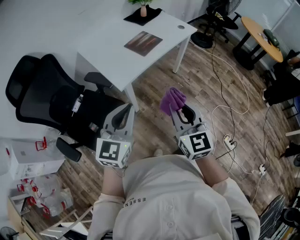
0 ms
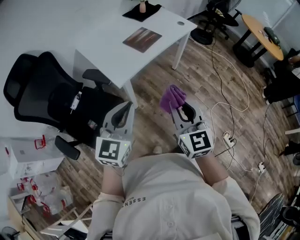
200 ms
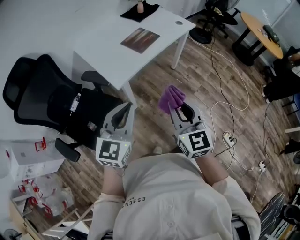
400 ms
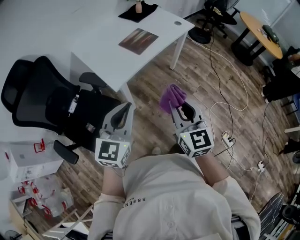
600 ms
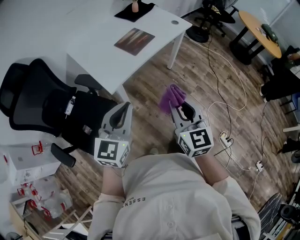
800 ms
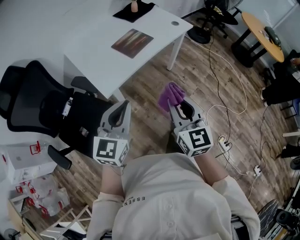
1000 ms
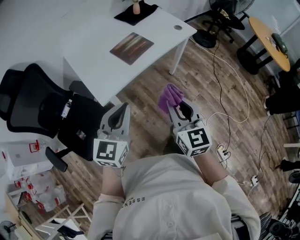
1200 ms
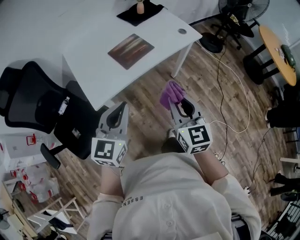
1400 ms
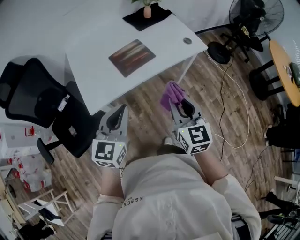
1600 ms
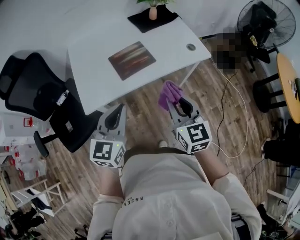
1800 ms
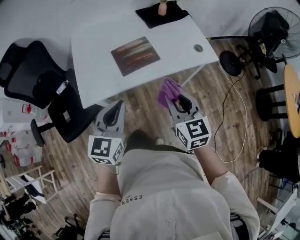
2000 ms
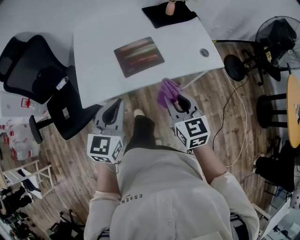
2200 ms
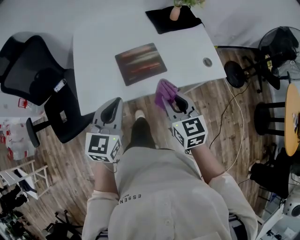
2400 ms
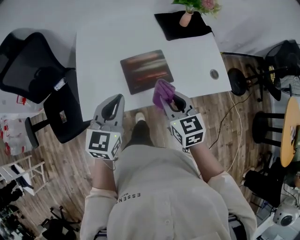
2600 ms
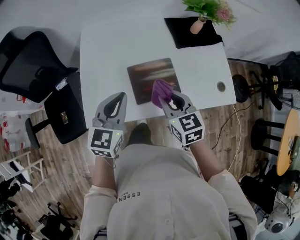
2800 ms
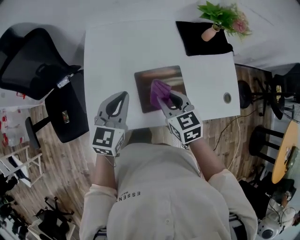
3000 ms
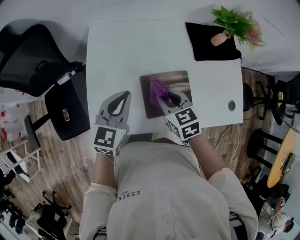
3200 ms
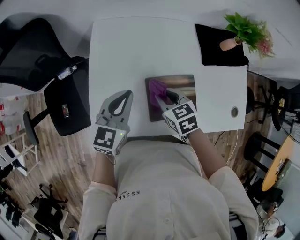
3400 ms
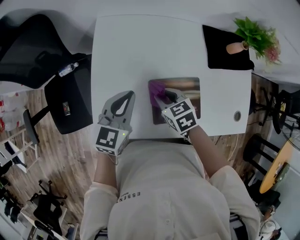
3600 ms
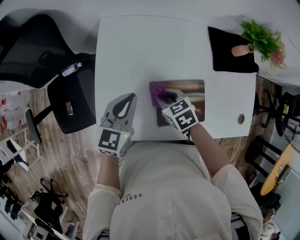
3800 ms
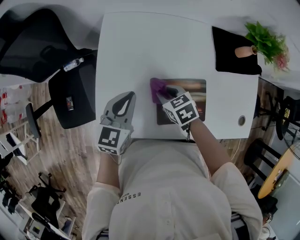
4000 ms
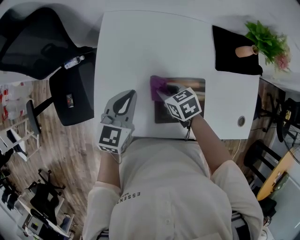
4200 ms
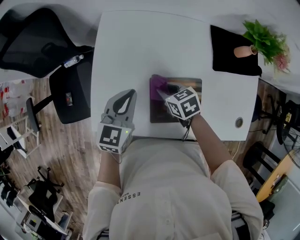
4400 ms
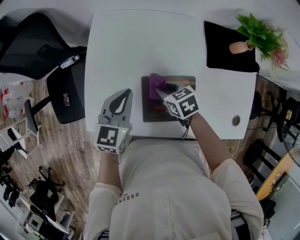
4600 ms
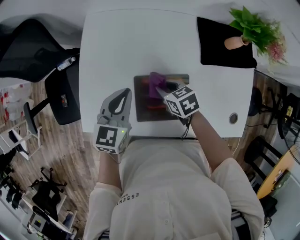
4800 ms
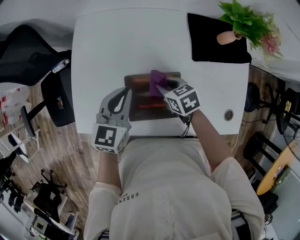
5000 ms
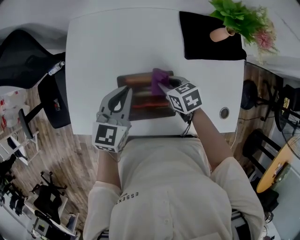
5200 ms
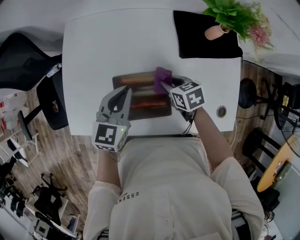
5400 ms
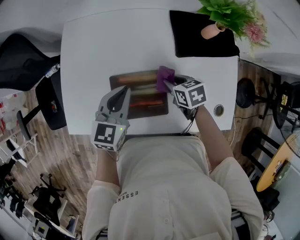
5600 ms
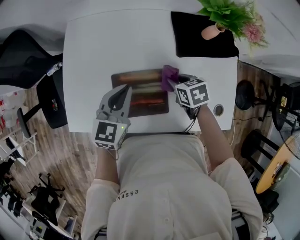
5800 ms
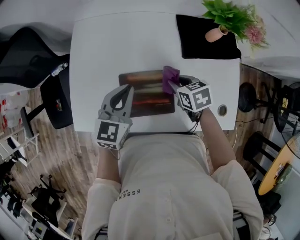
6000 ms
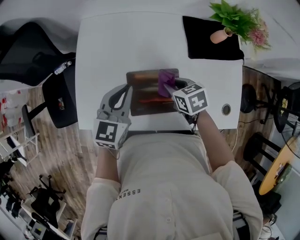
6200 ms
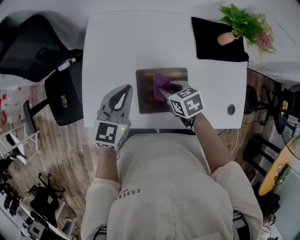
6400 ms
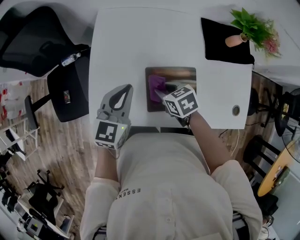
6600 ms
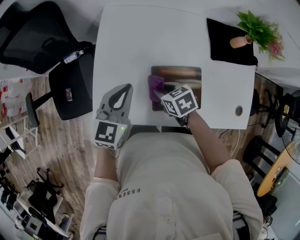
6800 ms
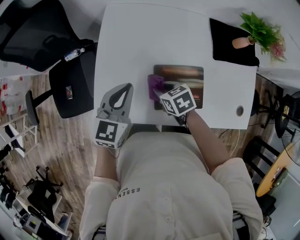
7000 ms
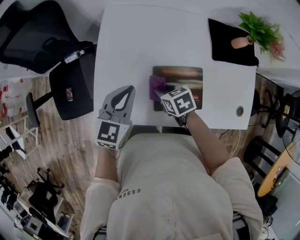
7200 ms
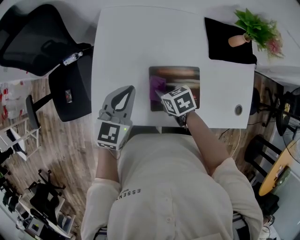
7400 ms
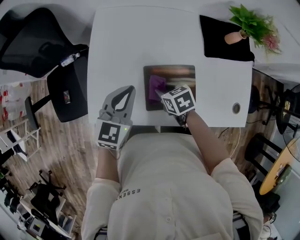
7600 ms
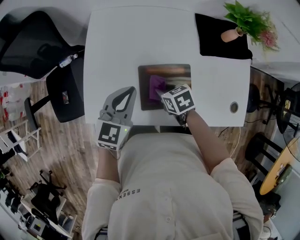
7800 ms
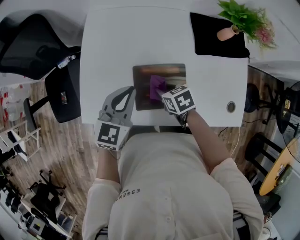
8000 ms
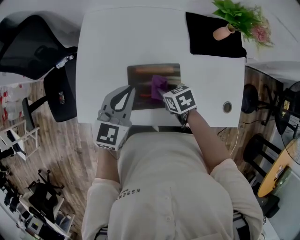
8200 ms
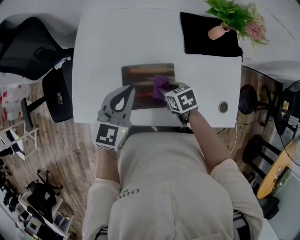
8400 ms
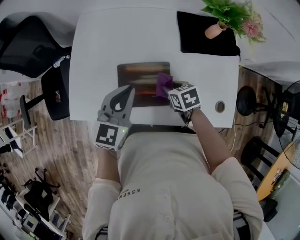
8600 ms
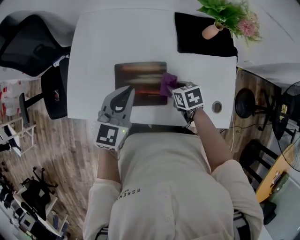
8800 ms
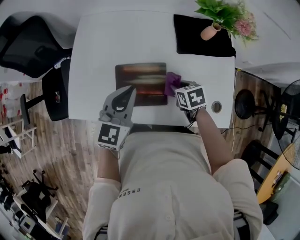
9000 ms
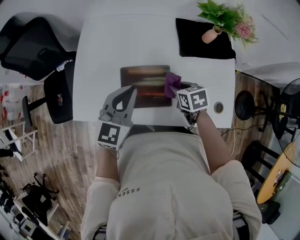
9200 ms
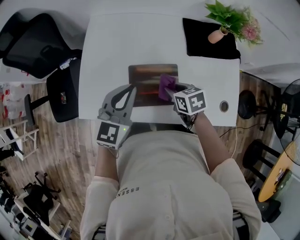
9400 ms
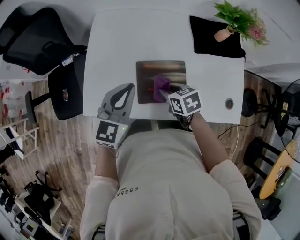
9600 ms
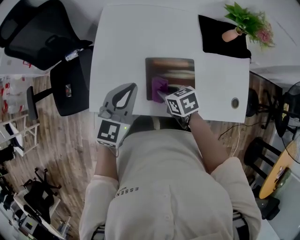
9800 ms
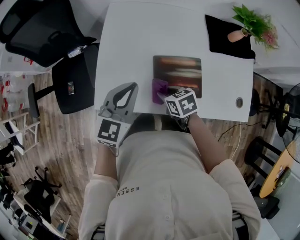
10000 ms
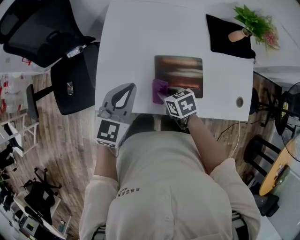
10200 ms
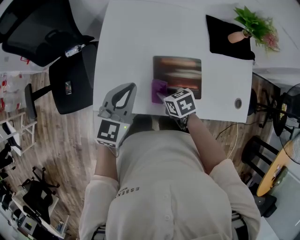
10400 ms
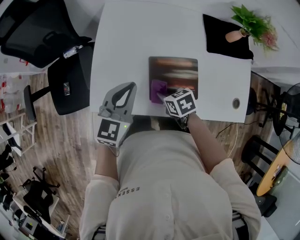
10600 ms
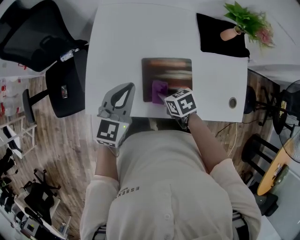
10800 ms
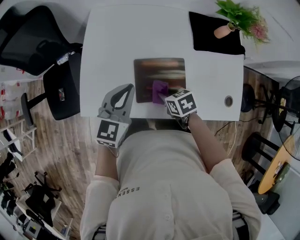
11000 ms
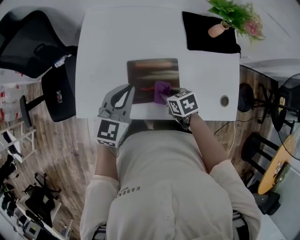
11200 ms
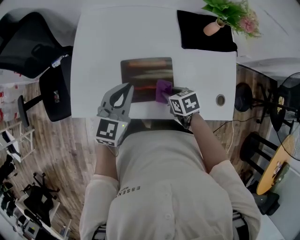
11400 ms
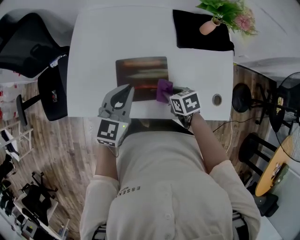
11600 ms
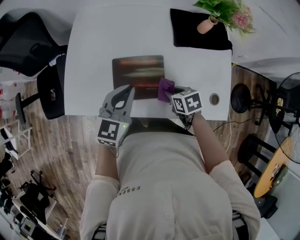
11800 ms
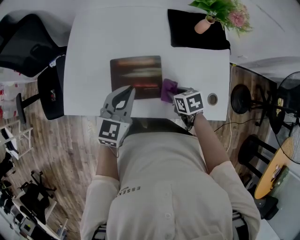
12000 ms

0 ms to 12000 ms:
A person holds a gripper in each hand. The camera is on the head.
0 ms to 1600 ms: The grippers both shift forward and to the right by roughly 35 cm.
1600 ms to 3000 ms: The right gripper shifts by some 40 cm, and swivels approximately 40 degrees. The left gripper moves some 30 cm, and turns by about 20 degrees.
3000 ms to 4400 ms: The right gripper moves downward and forward, approximately 15 cm, and changes its angle by some 30 degrees. The left gripper is displaced forward and downward by about 10 cm.
4400 ms to 6000 ms: Both grippers travel together to the right, approximately 15 cm.
6000 ms to 7600 ms: The left gripper travels to the left by some 10 cm. The right gripper shifts roughly 15 cm to the left.
7600 ms to 9000 ms: The right gripper moves to the right, about 20 cm. Meanwhile the left gripper heads to the right and backward, covering some 15 cm.
9000 ms to 10400 ms: Both grippers move to the left, roughly 20 cm.
10400 ms to 12000 ms: Both grippers move to the right, some 20 cm.

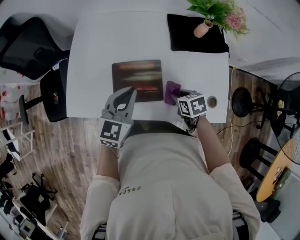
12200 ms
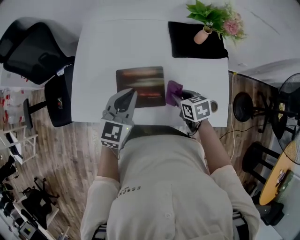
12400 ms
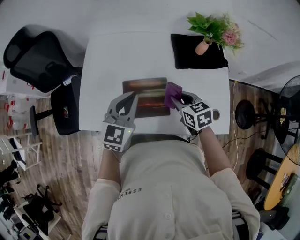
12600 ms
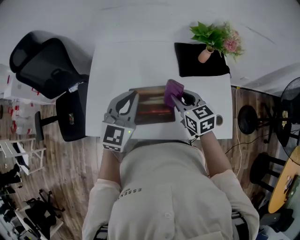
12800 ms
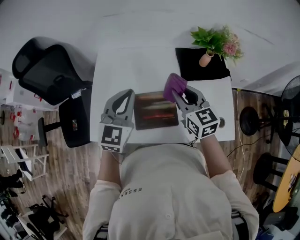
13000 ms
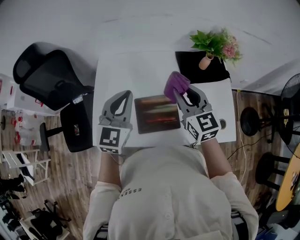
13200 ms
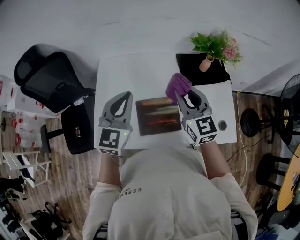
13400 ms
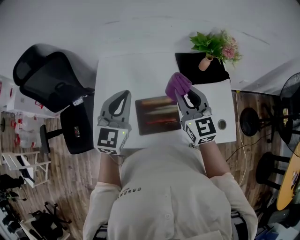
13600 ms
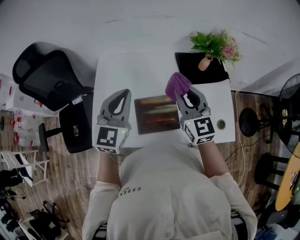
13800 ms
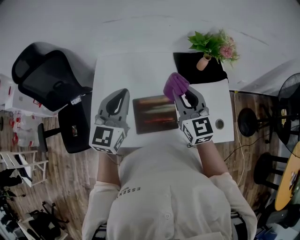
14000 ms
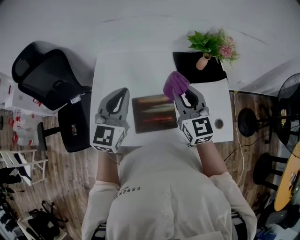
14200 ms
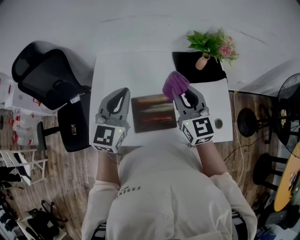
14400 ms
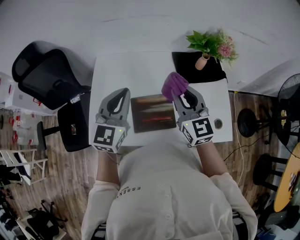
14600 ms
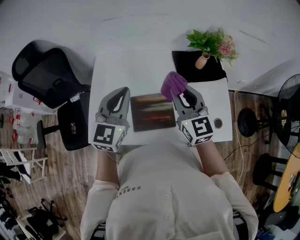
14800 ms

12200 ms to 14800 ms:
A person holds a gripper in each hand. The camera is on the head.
12200 ms to 13400 ms: The left gripper is displaced upward, to the left and forward by approximately 20 cm. The right gripper heads upward, covering roughly 30 cm, and tilts its fingers approximately 50 degrees upward.
13400 ms to 14800 ms: The grippers move only a little.

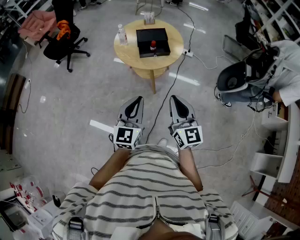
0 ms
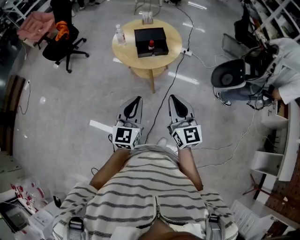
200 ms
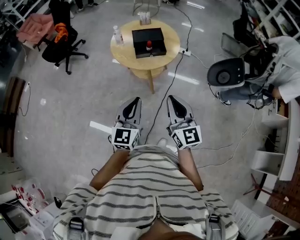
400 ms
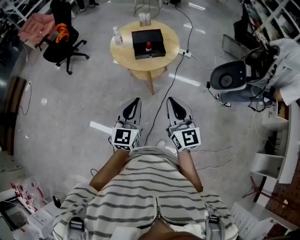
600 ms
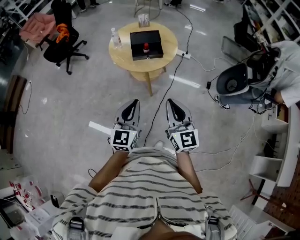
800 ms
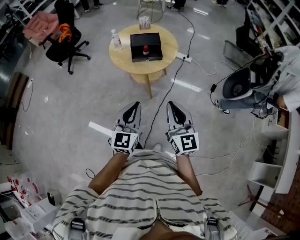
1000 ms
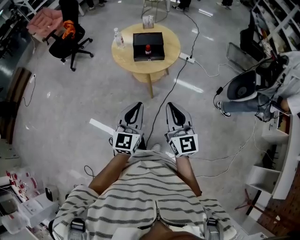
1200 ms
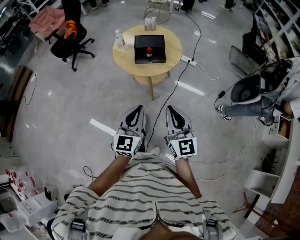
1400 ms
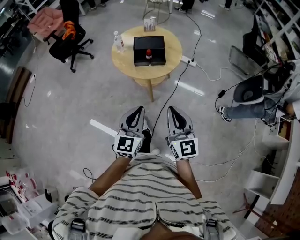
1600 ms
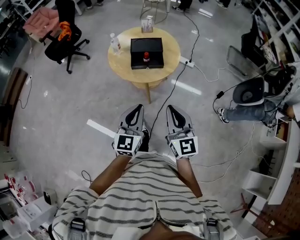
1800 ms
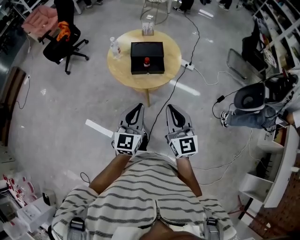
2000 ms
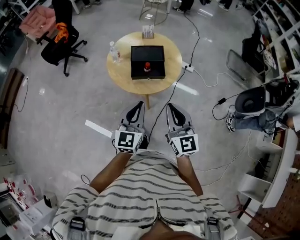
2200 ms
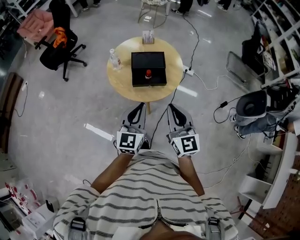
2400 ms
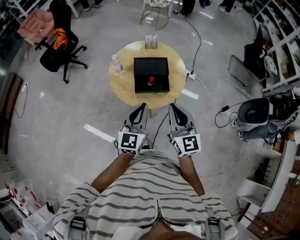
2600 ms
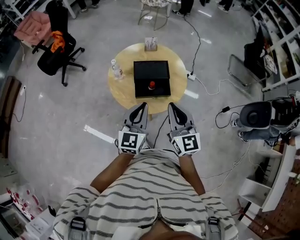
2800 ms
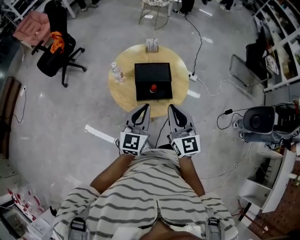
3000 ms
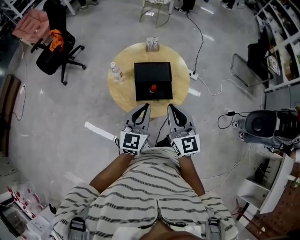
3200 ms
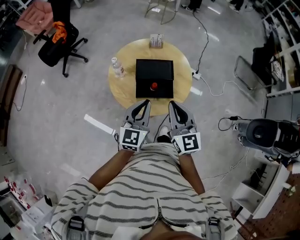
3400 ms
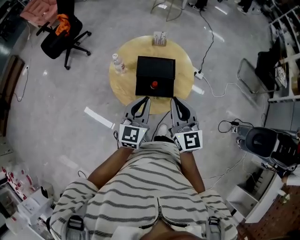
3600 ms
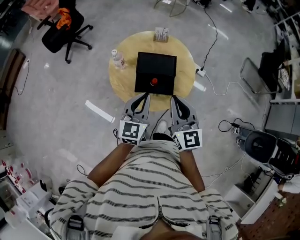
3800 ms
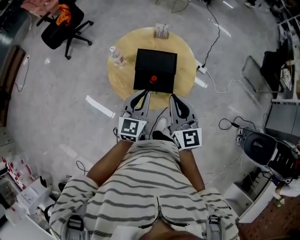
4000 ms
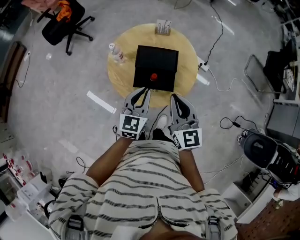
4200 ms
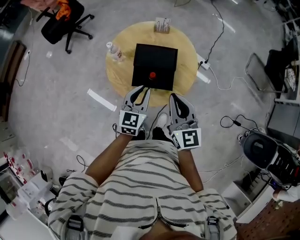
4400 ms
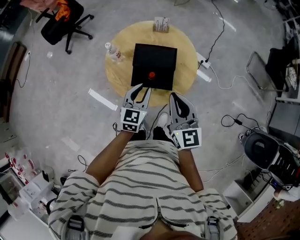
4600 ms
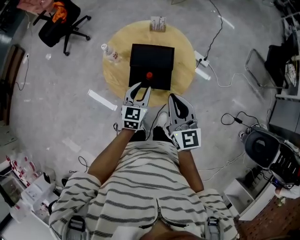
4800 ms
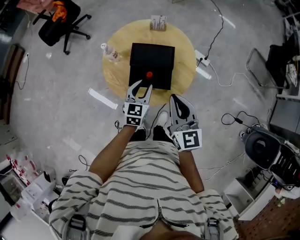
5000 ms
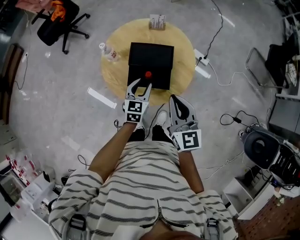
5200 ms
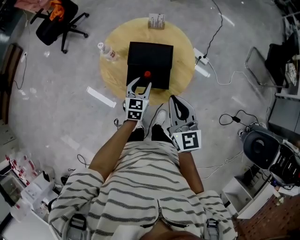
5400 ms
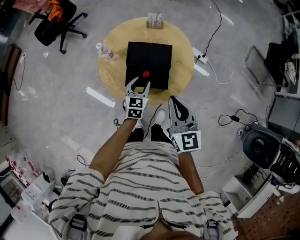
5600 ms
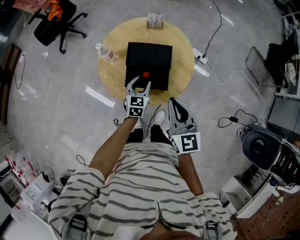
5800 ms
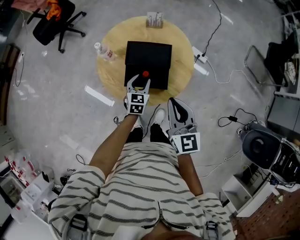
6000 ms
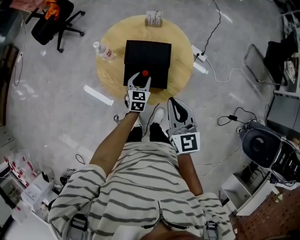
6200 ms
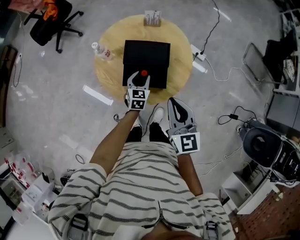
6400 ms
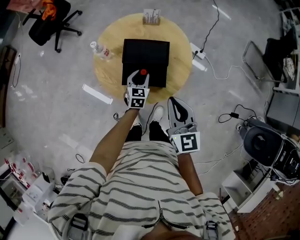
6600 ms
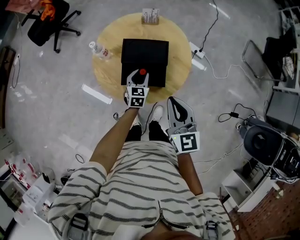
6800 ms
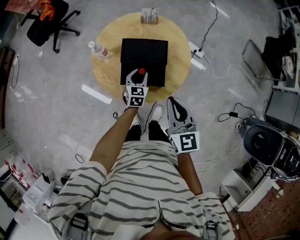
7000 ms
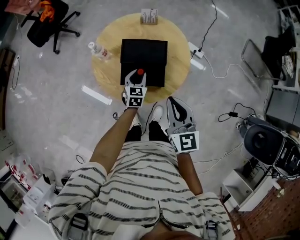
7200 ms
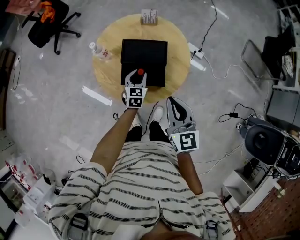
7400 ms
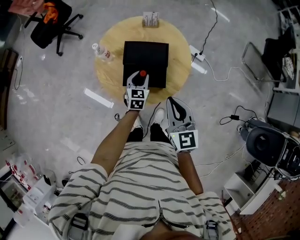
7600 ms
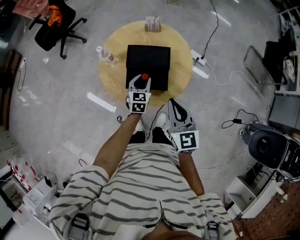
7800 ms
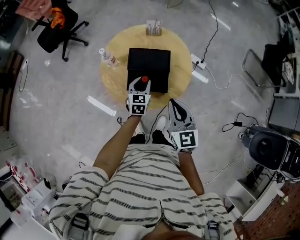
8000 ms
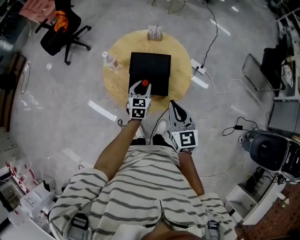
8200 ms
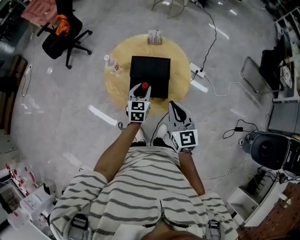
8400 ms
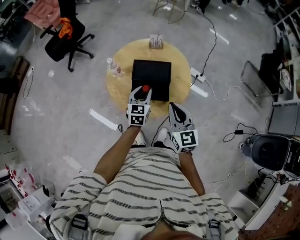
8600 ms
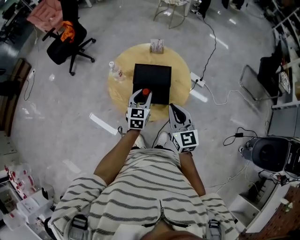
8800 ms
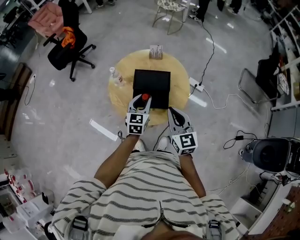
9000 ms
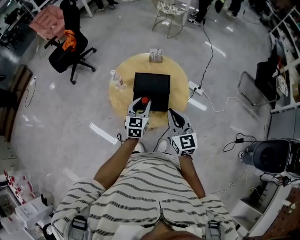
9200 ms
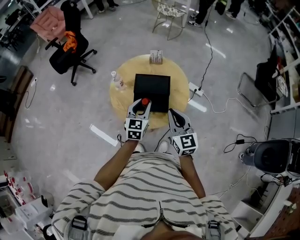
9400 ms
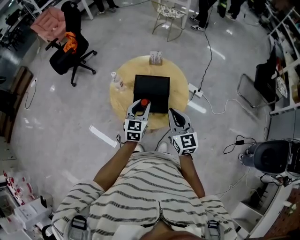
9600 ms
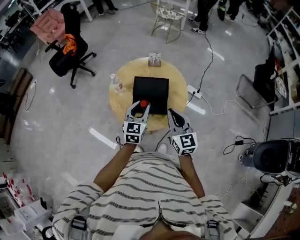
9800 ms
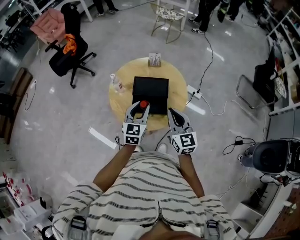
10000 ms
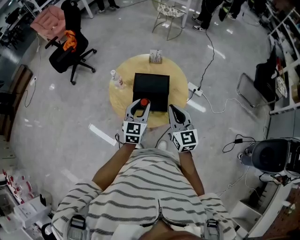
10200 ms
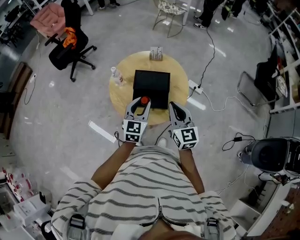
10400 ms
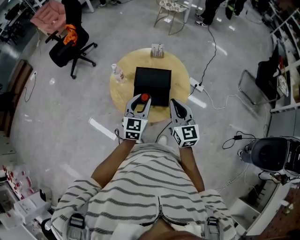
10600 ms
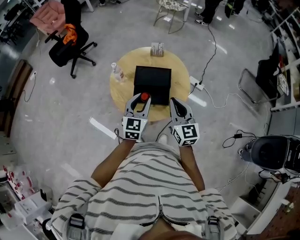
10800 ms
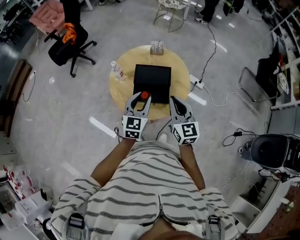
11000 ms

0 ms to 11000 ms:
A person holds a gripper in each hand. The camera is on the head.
0 ms to 1600 ms: Both grippers travel together to the right, about 10 cm.
1600 ms to 3200 ms: Both grippers travel together forward, approximately 30 cm.
3200 ms to 4800 ms: The right gripper shifts about 10 cm forward and to the right. Meanwhile the left gripper goes about 15 cm downward and forward, and opens up.
4800 ms to 6200 ms: The left gripper travels downward and forward by roughly 15 cm.
6200 ms to 7800 ms: The grippers stay close to where they were, moving slightly.
7800 ms to 9400 ms: The left gripper shifts approximately 15 cm upward and backward.
9400 ms to 11000 ms: The left gripper moves some 5 cm.
